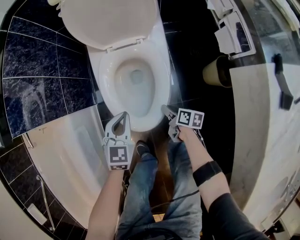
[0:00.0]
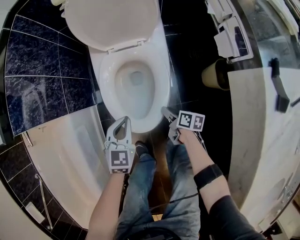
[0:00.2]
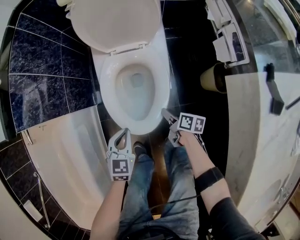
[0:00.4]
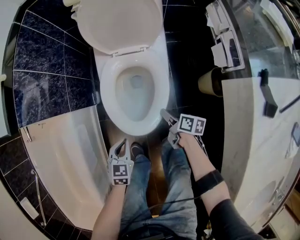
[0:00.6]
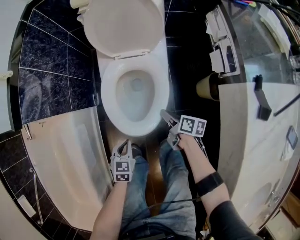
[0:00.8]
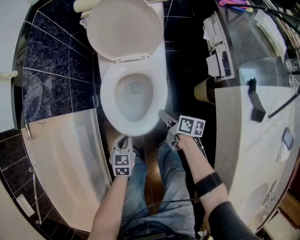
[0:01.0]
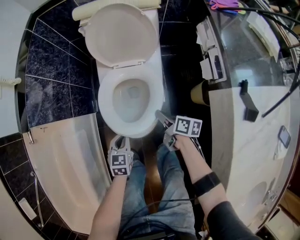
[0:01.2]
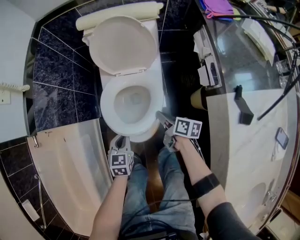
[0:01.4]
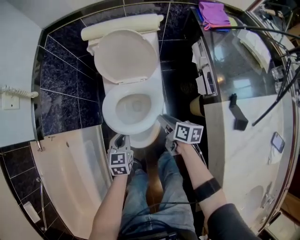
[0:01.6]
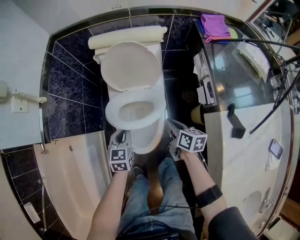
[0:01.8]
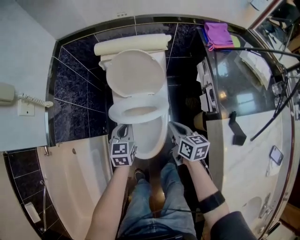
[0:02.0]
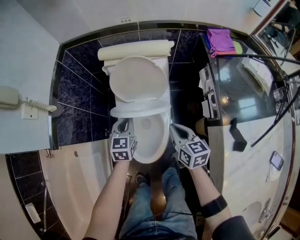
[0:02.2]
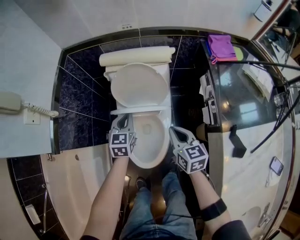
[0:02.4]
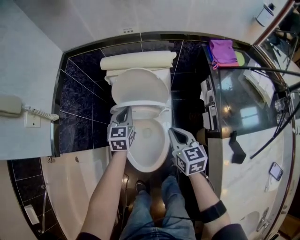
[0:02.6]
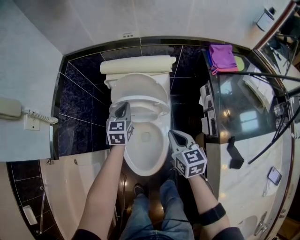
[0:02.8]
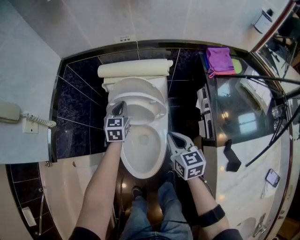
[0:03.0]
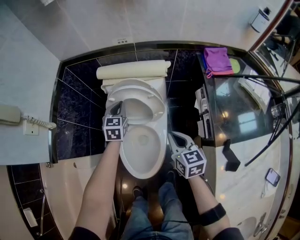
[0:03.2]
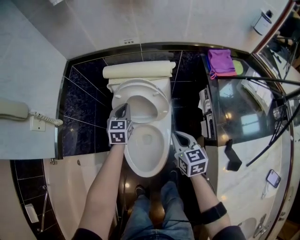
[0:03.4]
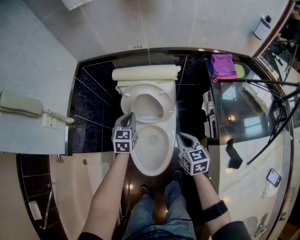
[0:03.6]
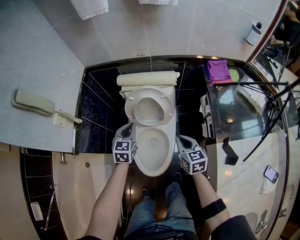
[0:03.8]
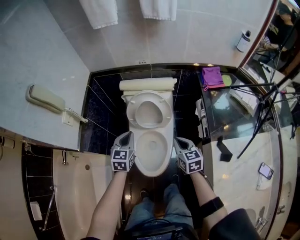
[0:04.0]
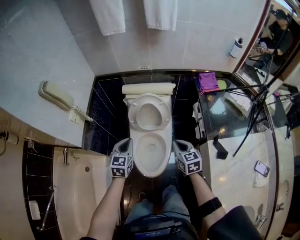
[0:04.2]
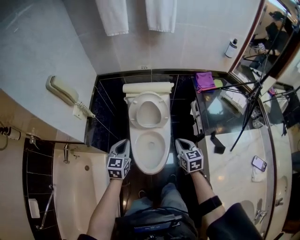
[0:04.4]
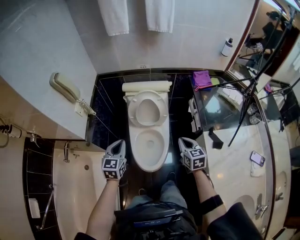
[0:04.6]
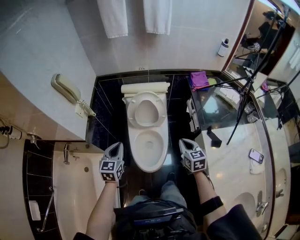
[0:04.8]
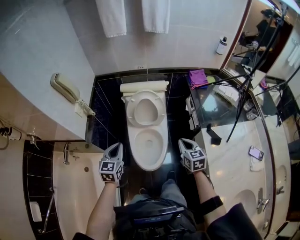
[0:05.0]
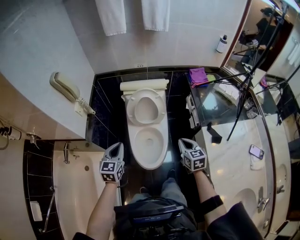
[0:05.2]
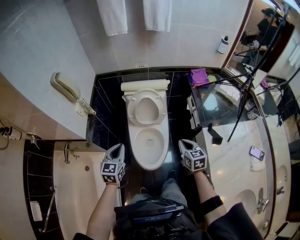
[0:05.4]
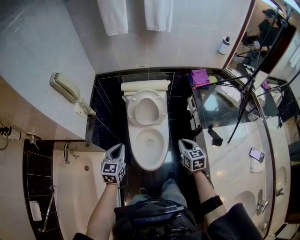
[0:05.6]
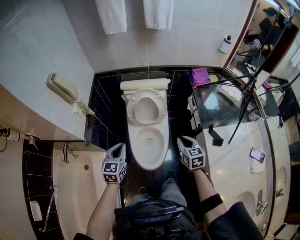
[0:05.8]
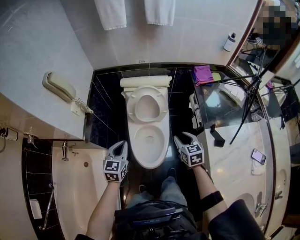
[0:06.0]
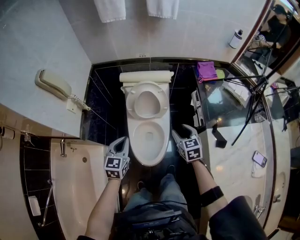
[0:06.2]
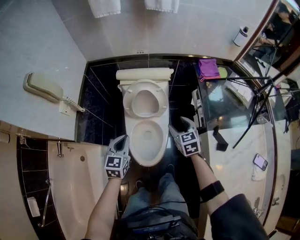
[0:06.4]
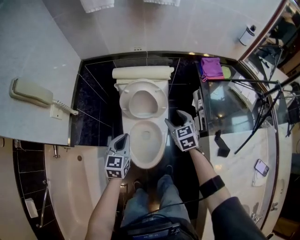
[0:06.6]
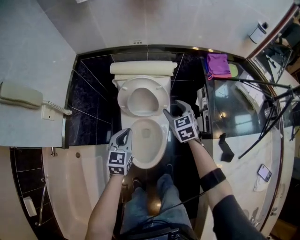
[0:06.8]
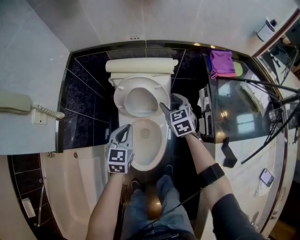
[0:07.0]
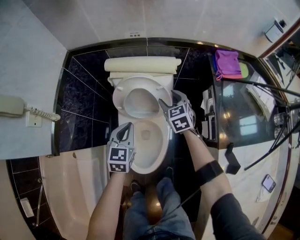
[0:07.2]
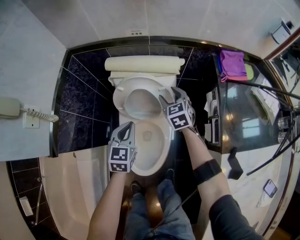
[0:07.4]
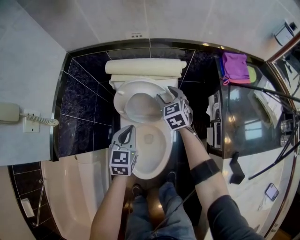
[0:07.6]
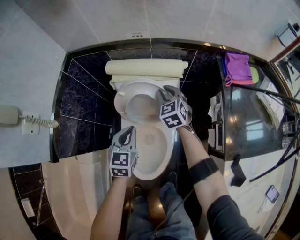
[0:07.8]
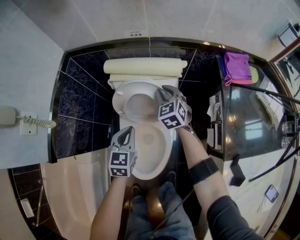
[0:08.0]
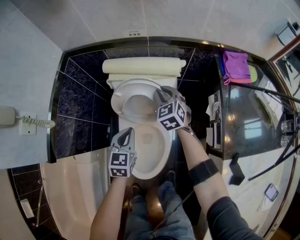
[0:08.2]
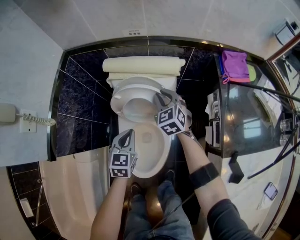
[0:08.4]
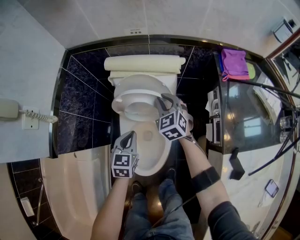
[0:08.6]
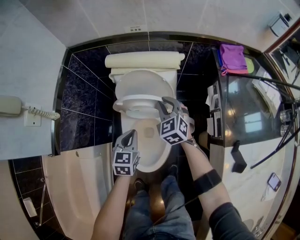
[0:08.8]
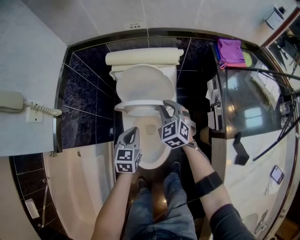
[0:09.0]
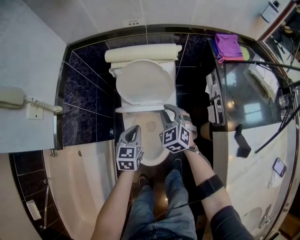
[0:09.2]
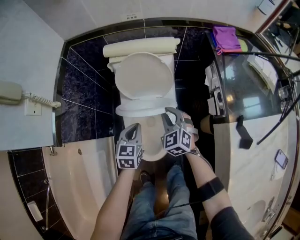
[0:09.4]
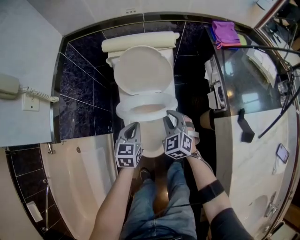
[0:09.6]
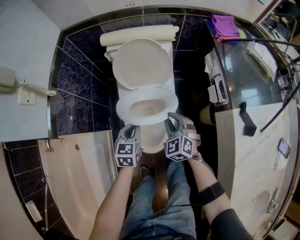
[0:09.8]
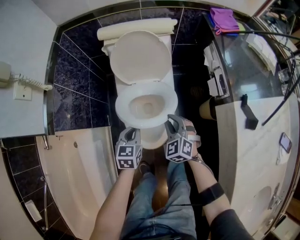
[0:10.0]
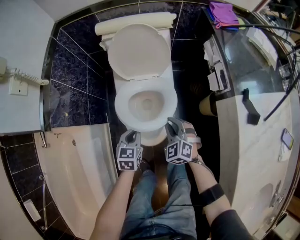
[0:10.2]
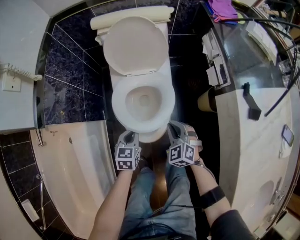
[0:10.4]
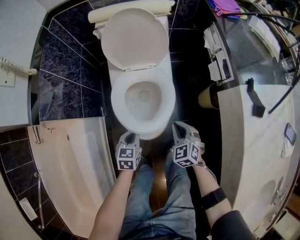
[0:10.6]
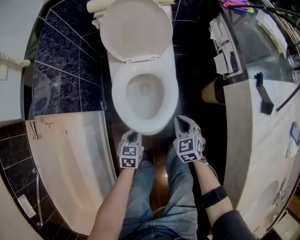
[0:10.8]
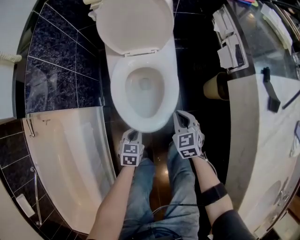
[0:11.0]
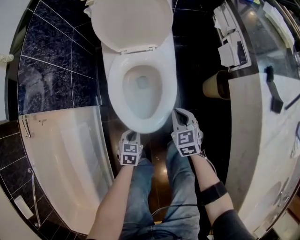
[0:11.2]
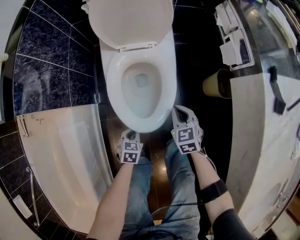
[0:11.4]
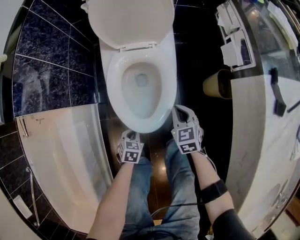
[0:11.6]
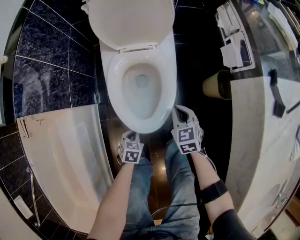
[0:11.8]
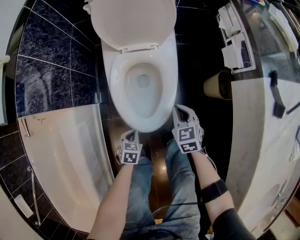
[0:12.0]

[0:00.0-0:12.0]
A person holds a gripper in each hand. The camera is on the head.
0:00.0 to 0:01.6: The right gripper heads upward, covering roughly 30 cm; the left gripper goes approximately 10 cm upward, and travels backward and back again, roughly 10 cm each way.
0:01.6 to 0:03.0: The left gripper travels forward by some 30 cm, while the right gripper moves upward and forward, approximately 20 cm, rotates roughly 40 degrees, and closes up.
0:03.0 to 0:04.4: The right gripper heads backward and upward, covering about 20 cm, while the left gripper heads backward and upward, covering some 35 cm.
0:04.4 to 0:06.0: The right gripper opens up.
0:06.0 to 0:07.6: The right gripper travels forward and downward by approximately 40 cm. The left gripper travels forward, downward and to the right by approximately 30 cm.
0:07.6 to 0:09.0: The right gripper moves backward, approximately 15 cm, and closes up; the left gripper moves backward, roughly 5 cm.
0:09.0 to 0:10.4: Both grippers travel together backward and downward, approximately 30 cm.
0:10.4 to 0:12.0: The right gripper is displaced downward by some 10 cm, and changes its angle by roughly 30 degrees, while the left gripper is displaced downward and backward by roughly 25 cm, and rotates roughly 20 degrees.

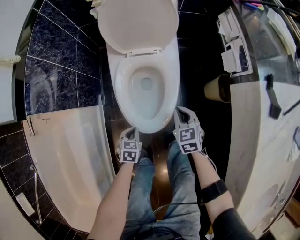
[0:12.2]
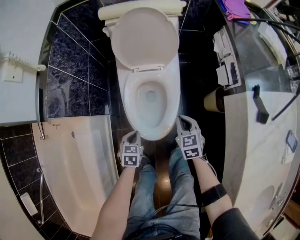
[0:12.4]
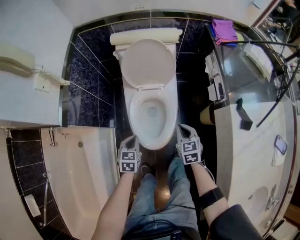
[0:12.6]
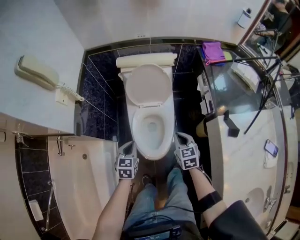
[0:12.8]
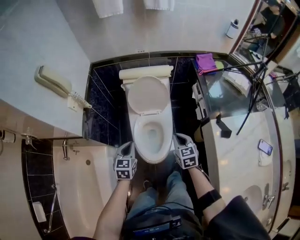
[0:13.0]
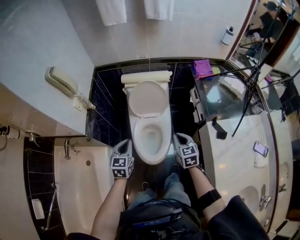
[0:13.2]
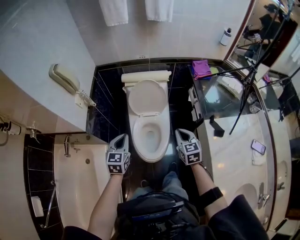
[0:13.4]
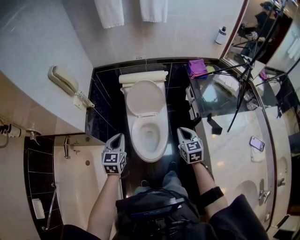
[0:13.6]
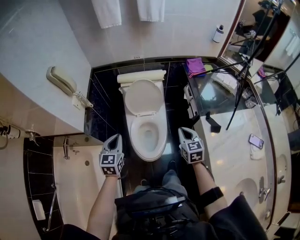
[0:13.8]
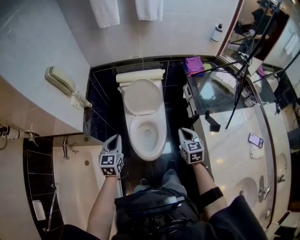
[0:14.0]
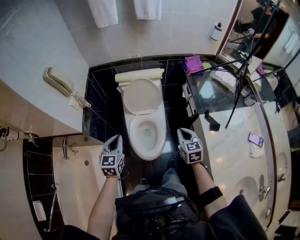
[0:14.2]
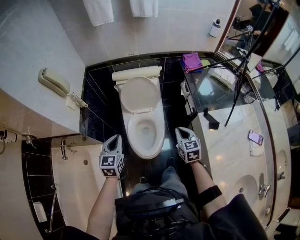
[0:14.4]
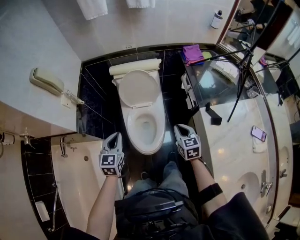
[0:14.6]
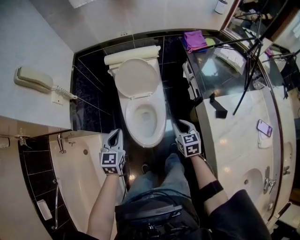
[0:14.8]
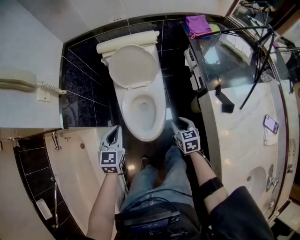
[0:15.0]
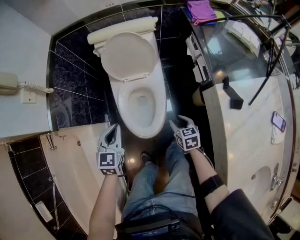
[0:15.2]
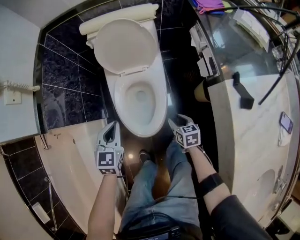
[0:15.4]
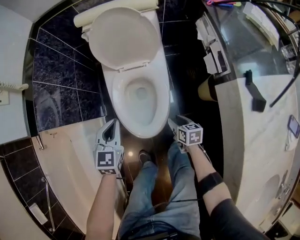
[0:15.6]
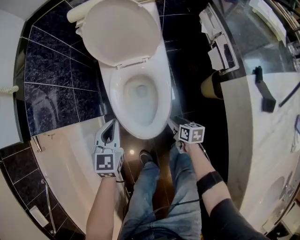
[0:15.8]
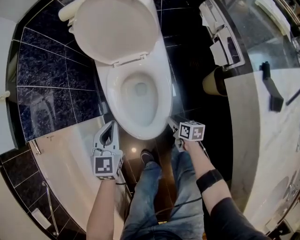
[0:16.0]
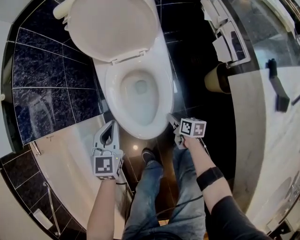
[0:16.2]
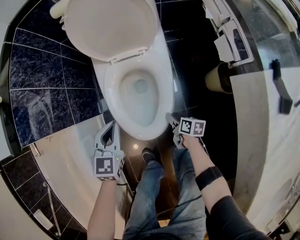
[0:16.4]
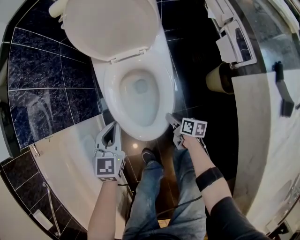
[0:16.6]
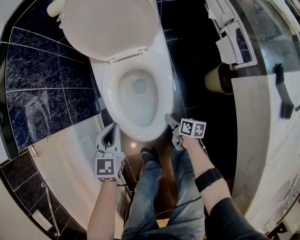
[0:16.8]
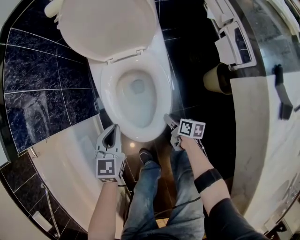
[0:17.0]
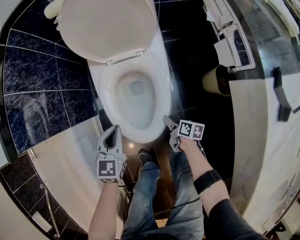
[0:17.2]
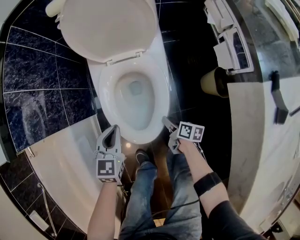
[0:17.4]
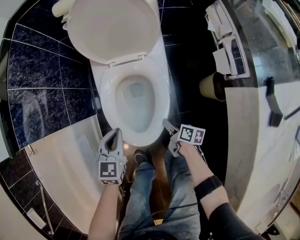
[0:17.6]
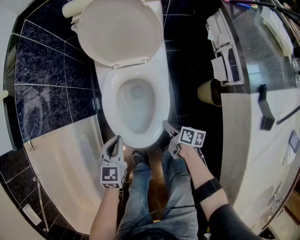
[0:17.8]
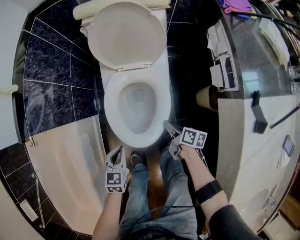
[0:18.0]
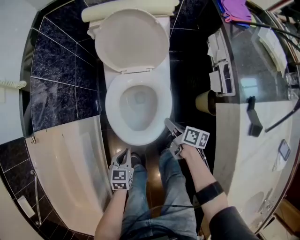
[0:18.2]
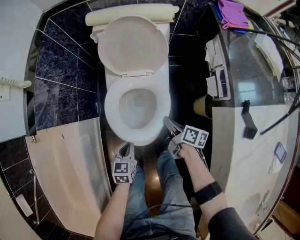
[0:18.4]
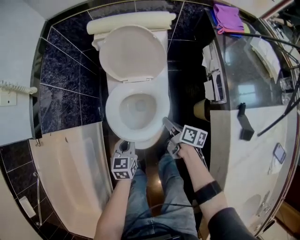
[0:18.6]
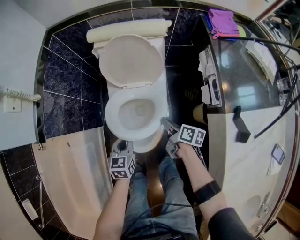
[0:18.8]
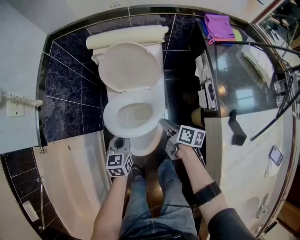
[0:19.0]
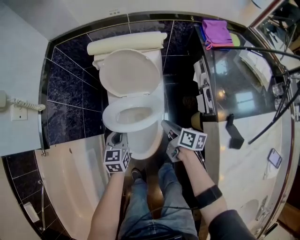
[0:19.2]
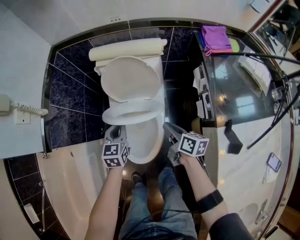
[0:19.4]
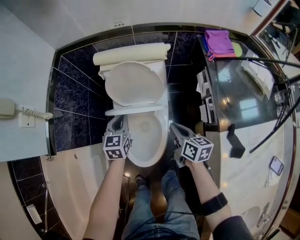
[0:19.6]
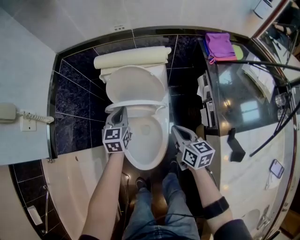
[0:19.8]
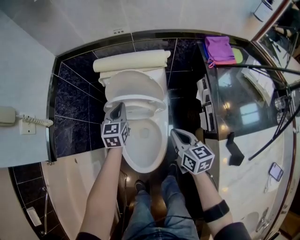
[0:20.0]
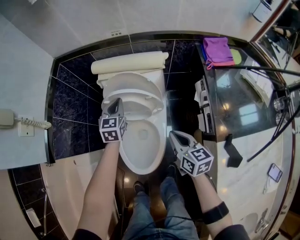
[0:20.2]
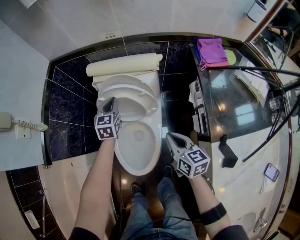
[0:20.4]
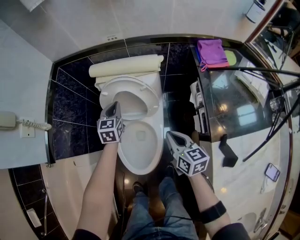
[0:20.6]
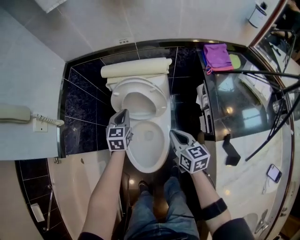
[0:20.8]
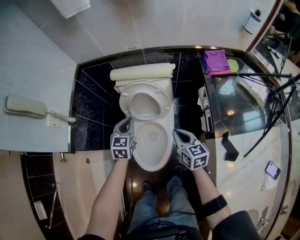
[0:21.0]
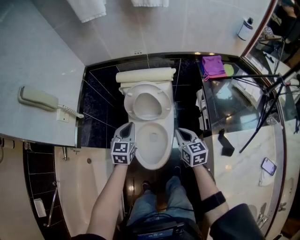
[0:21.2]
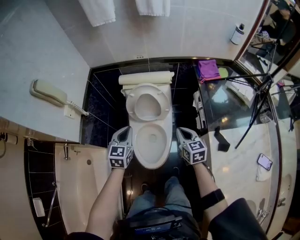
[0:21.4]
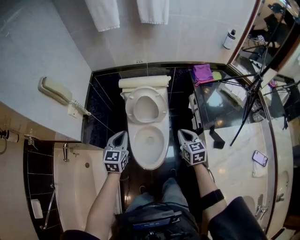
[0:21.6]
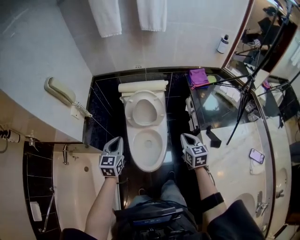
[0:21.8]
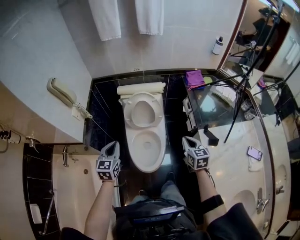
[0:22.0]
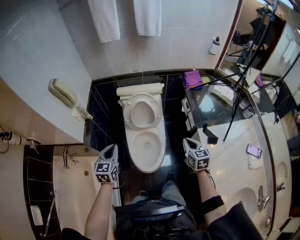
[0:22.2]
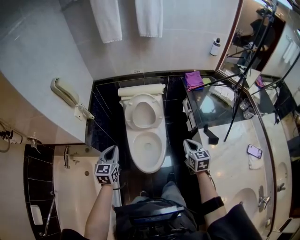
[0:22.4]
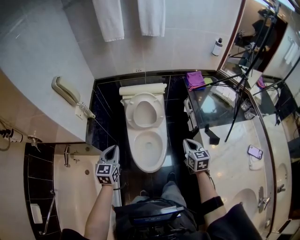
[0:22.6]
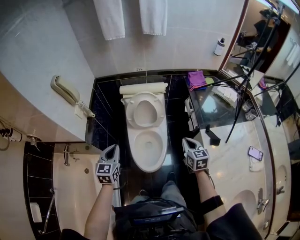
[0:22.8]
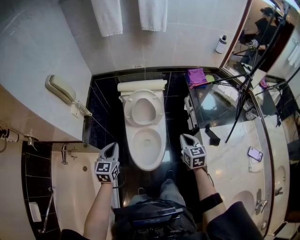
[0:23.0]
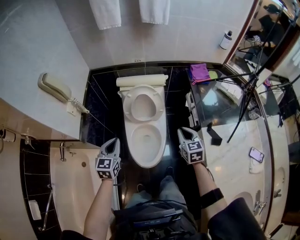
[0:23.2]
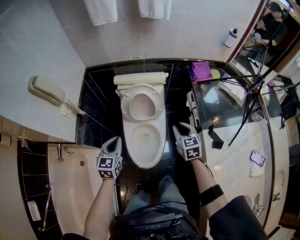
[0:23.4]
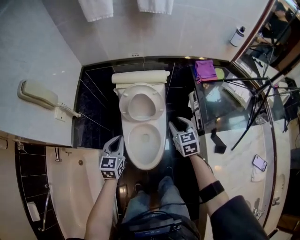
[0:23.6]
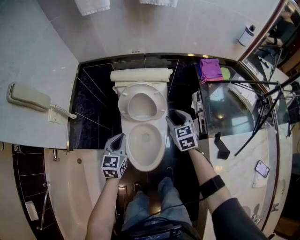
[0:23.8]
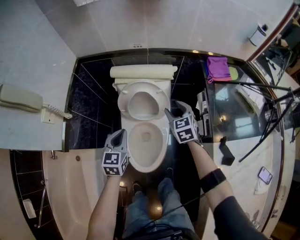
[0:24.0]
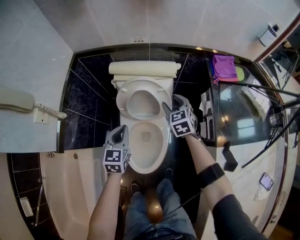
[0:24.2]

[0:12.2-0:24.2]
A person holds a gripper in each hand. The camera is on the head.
0:12.2 to 0:13.8: The grippers both shift upward by about 50 cm. The left gripper angles its fingers upward, by approximately 40 degrees.
0:13.8 to 0:15.2: The right gripper shifts roughly 30 cm downward, turns by some 20 degrees, and opens its fingers, while the left gripper moves downward, roughly 20 cm.
0:15.2 to 0:16.6: The two grippers go roughly 25 cm downward. The right gripper twists approximately 40 degrees clockwise, seen from behind.
0:16.6 to 0:18.2: The right gripper moves upward, approximately 20 cm. Meanwhile the left gripper is displaced backward by roughly 15 cm, and turns by approximately 20 degrees.
0:18.2 to 0:19.8: The left gripper moves forward and upward, roughly 40 cm, and swivels about 20 degrees, while the right gripper goes some 25 cm upward and forward, changes its angle by approximately 40 degrees, and closes up.
0:19.8 to 0:21.2: The right gripper heads upward, covering roughly 10 cm, while the left gripper heads upward and backward, covering some 15 cm.
0:21.2 to 0:22.6: The left gripper moves backward, to the left and upward, approximately 25 cm; the right gripper shifts approximately 20 cm backward and upward.
0:22.6 to 0:24.2: The right gripper goes approximately 40 cm forward and downward, turns by roughly 30 degrees, and opens up. Meanwhile the left gripper travels forward, downward and to the right by approximately 30 cm.
